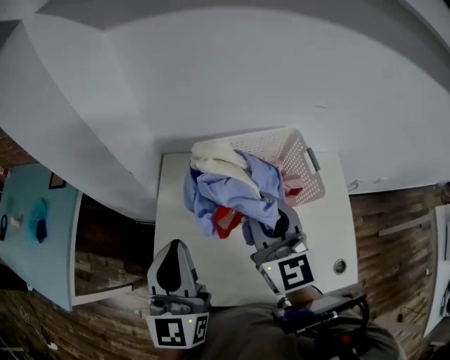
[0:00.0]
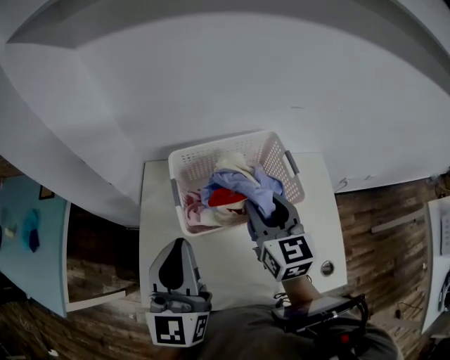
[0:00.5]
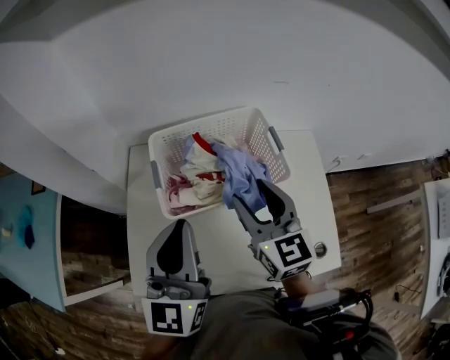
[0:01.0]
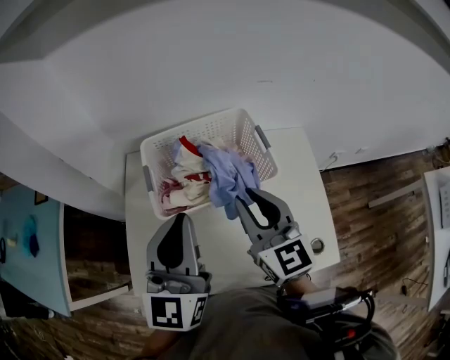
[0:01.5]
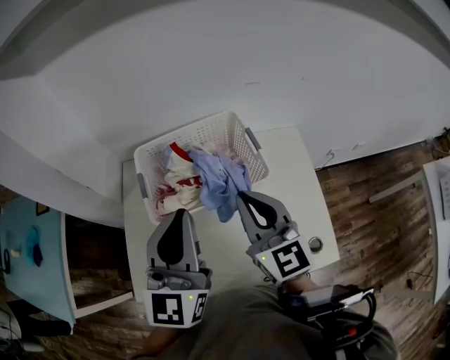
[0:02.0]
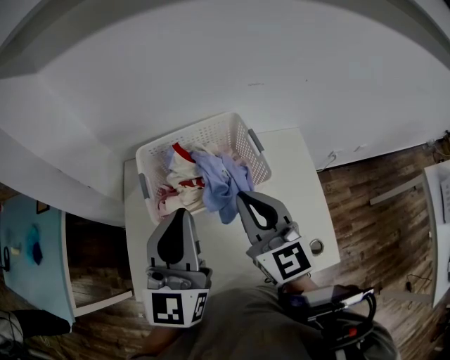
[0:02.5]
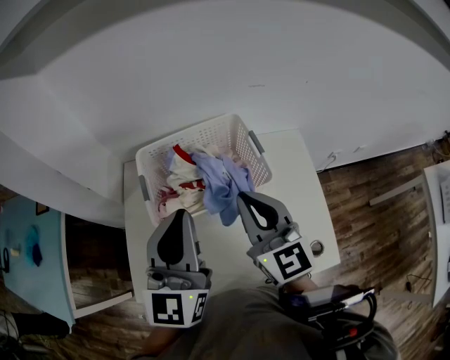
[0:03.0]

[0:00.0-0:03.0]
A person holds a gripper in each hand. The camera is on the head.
0:00.0 to 0:01.5: Both grippers travel together to the right, roughly 15 cm.
0:01.5 to 0:03.0: There are only small adjustments of the grippers.

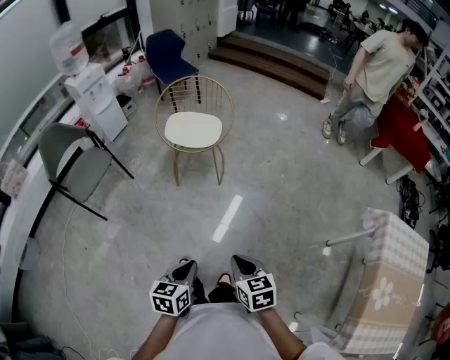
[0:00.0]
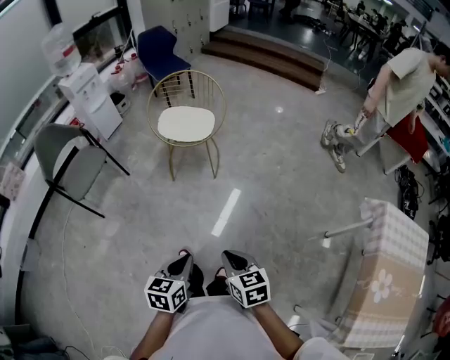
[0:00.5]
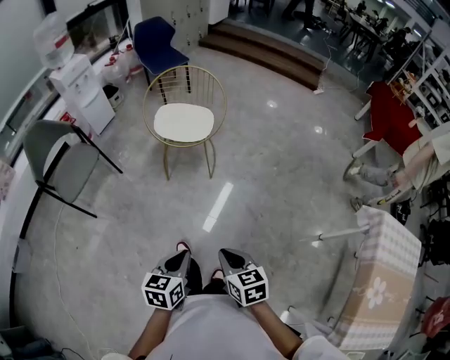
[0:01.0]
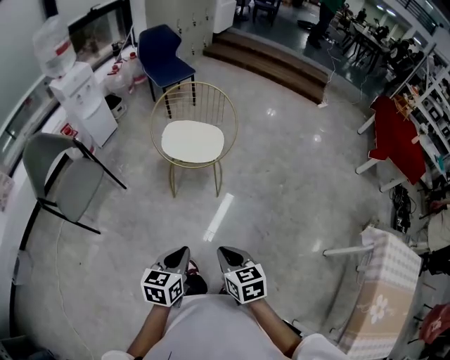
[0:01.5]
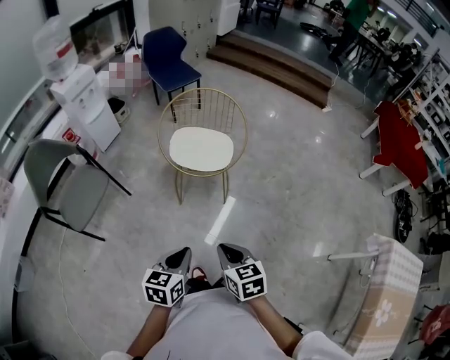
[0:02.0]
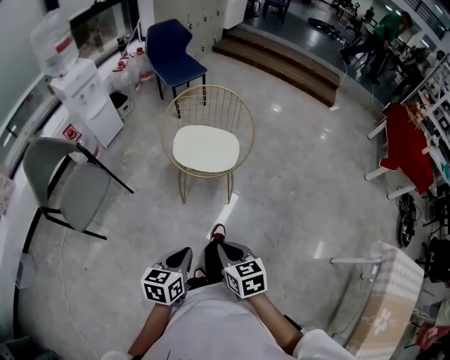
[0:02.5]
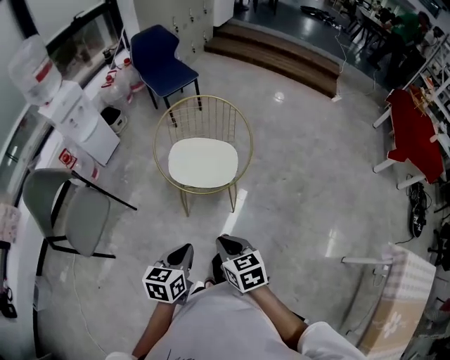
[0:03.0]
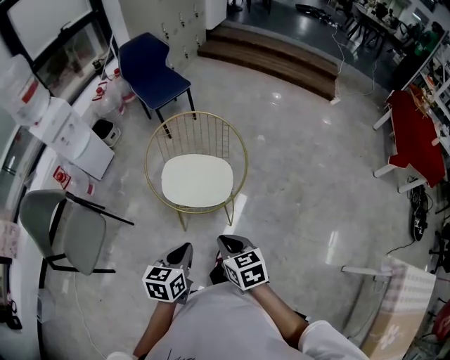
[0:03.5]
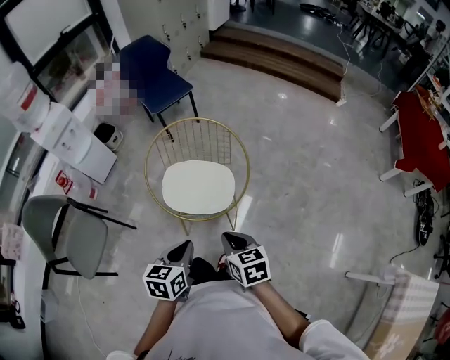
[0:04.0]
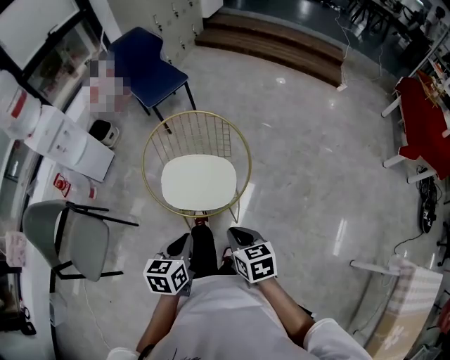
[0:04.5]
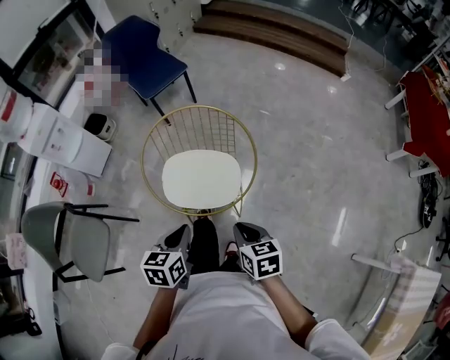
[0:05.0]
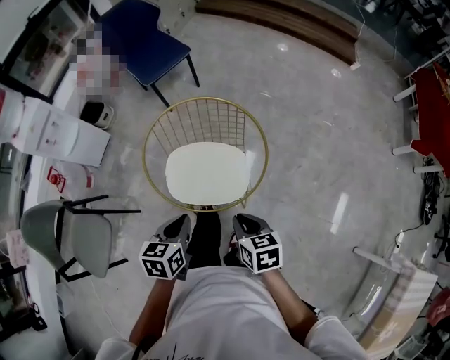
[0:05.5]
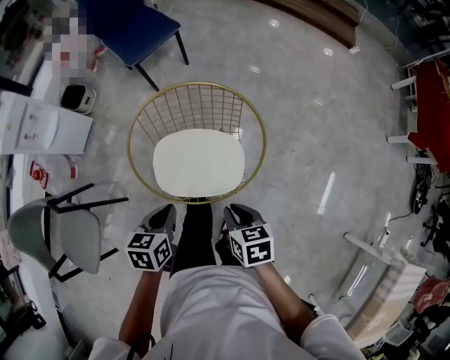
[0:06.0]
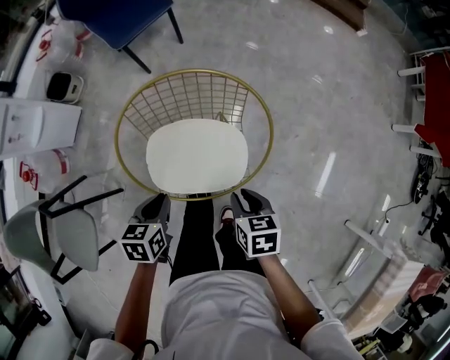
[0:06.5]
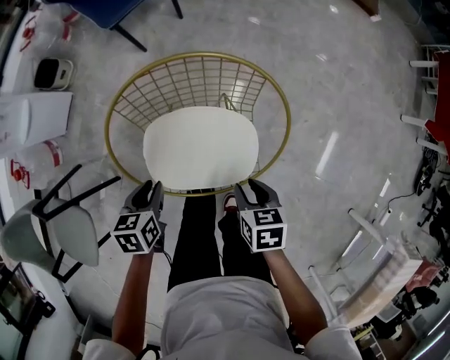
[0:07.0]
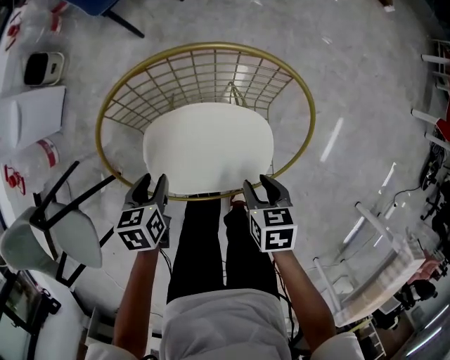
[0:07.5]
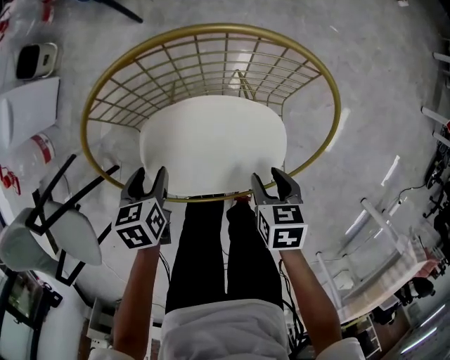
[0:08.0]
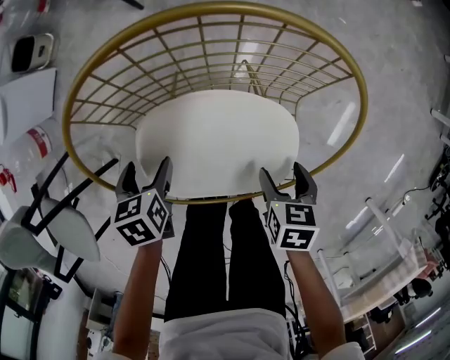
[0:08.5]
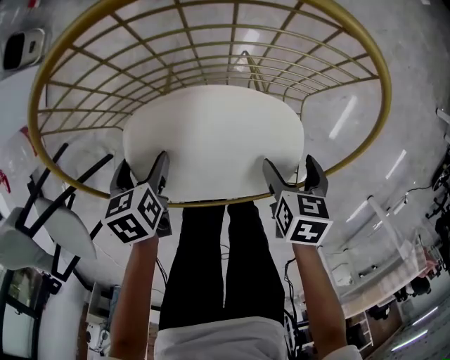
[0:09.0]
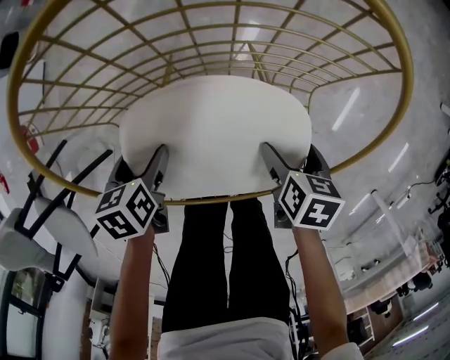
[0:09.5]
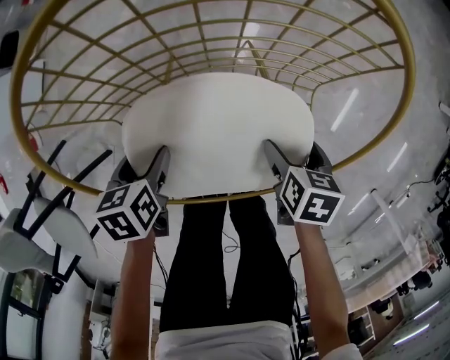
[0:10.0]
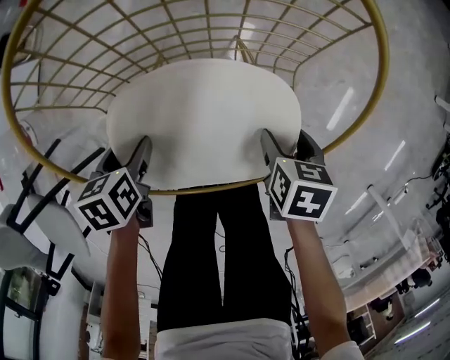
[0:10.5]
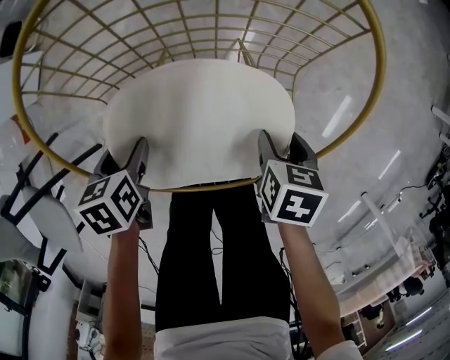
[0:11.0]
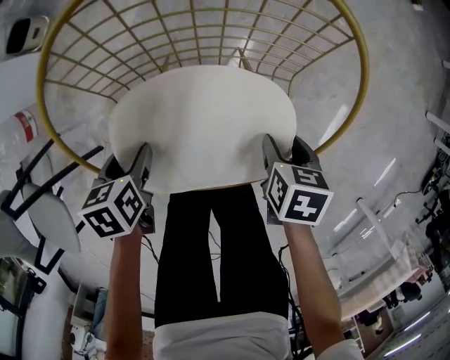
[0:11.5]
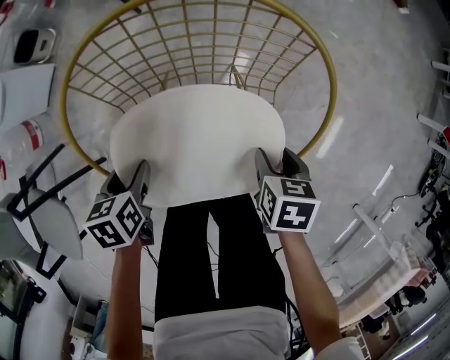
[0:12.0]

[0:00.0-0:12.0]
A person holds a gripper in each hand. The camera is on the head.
0:00.0 to 0:02.0: The two grippers go about 30 cm forward and to the left.
0:02.0 to 0:04.0: The grippers both shift forward by roughly 35 cm.
0:04.0 to 0:06.0: Both grippers travel together forward and downward, about 25 cm.
0:06.0 to 0:08.0: The grippers both shift downward and forward by roughly 30 cm. The left gripper changes its angle by about 20 degrees, and opens up.
0:08.0 to 0:10.0: The grippers both shift downward by some 10 cm. The right gripper opens.
0:10.0 to 0:12.0: The two grippers go some 10 cm upward. The right gripper closes.

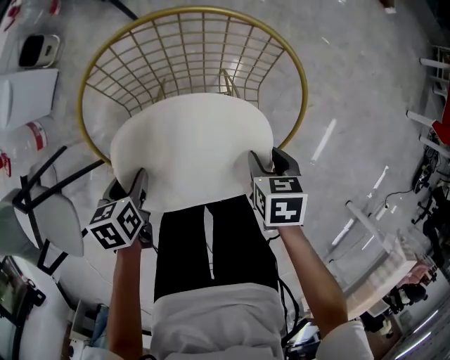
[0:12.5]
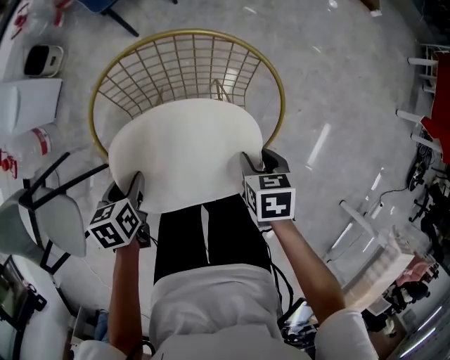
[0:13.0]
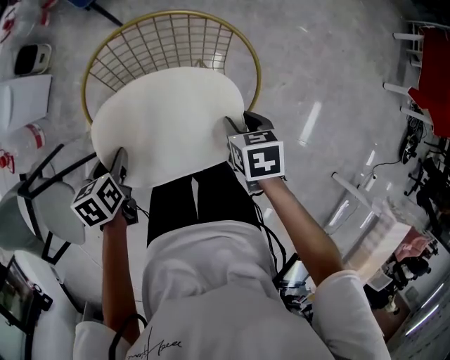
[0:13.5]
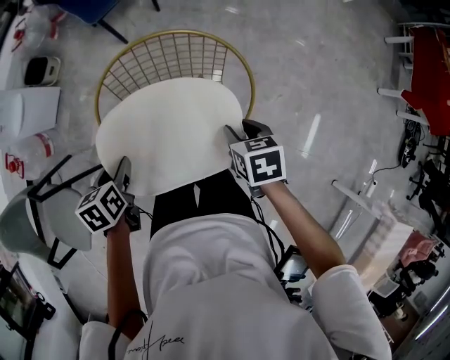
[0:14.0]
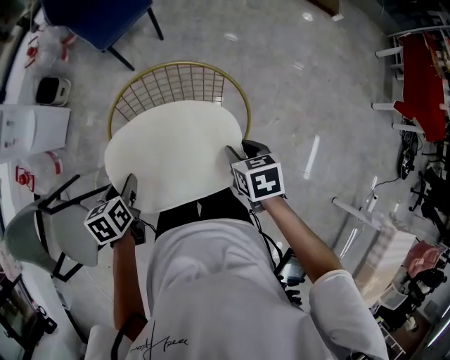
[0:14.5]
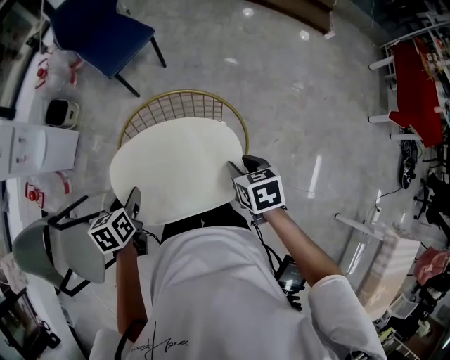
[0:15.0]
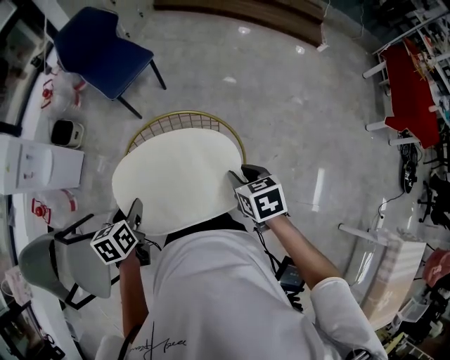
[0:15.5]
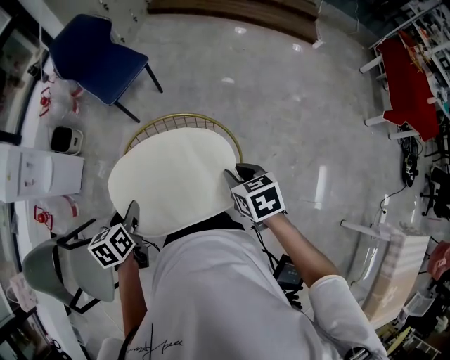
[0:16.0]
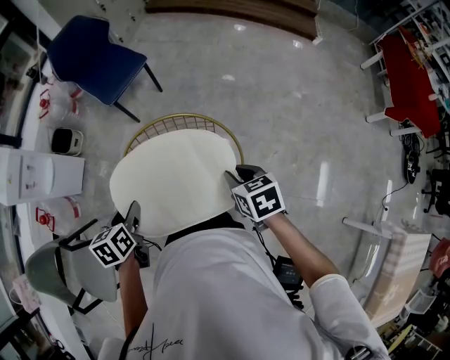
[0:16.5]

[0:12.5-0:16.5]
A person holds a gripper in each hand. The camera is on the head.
0:12.5 to 0:14.5: The two grippers go about 20 cm upward.
0:14.5 to 0:16.5: The two grippers go some 10 cm upward.

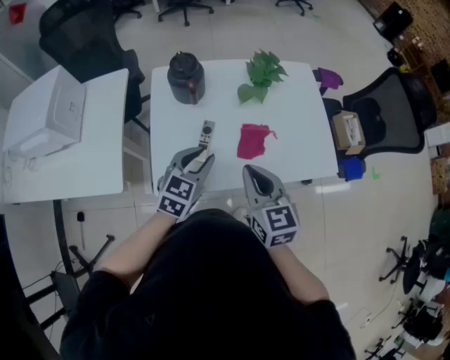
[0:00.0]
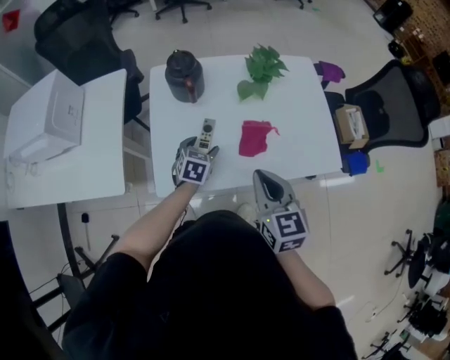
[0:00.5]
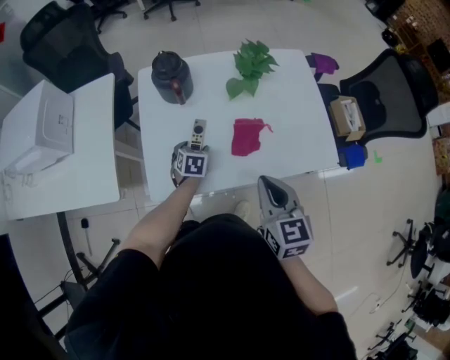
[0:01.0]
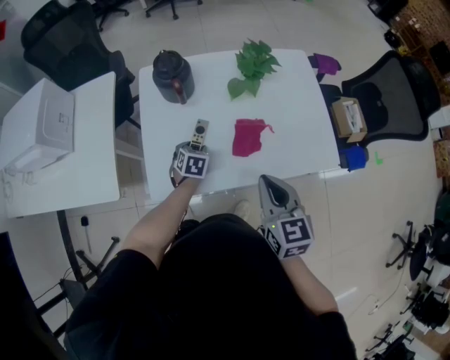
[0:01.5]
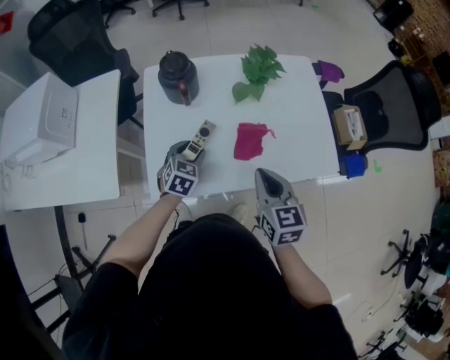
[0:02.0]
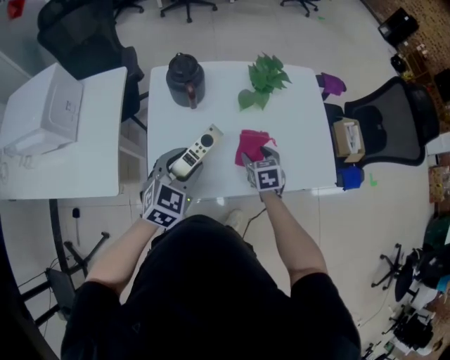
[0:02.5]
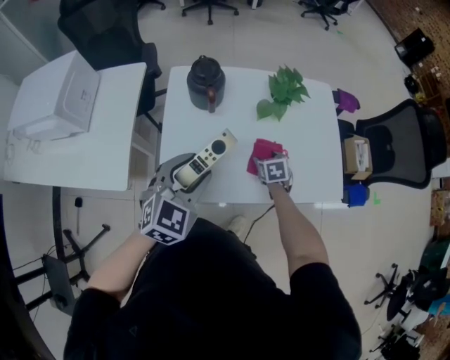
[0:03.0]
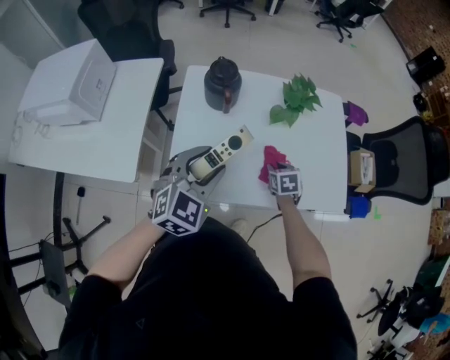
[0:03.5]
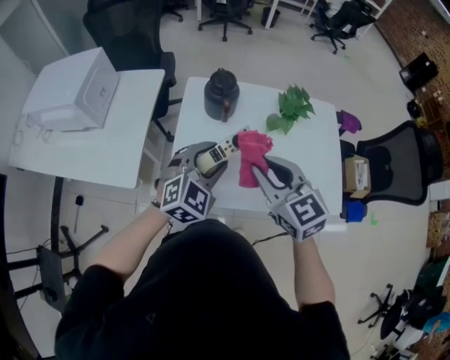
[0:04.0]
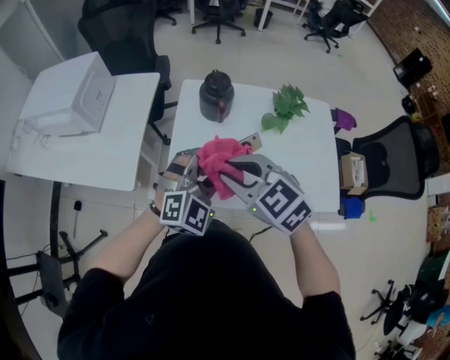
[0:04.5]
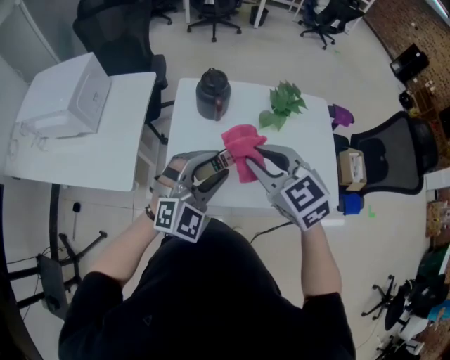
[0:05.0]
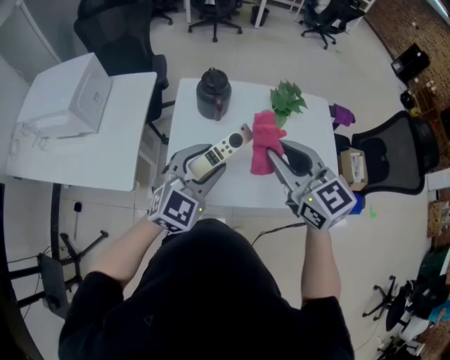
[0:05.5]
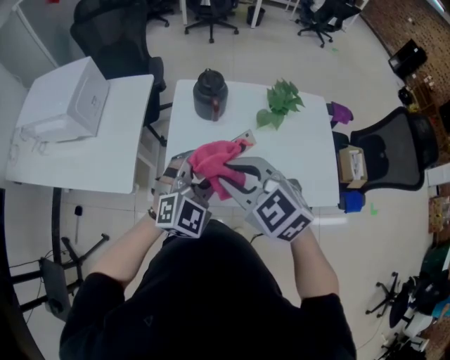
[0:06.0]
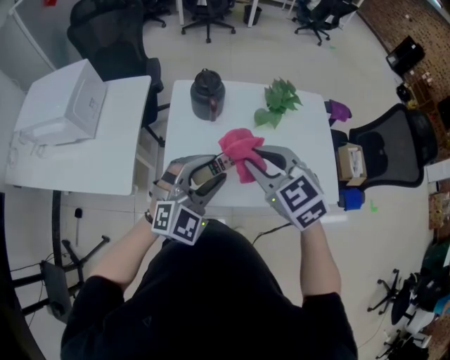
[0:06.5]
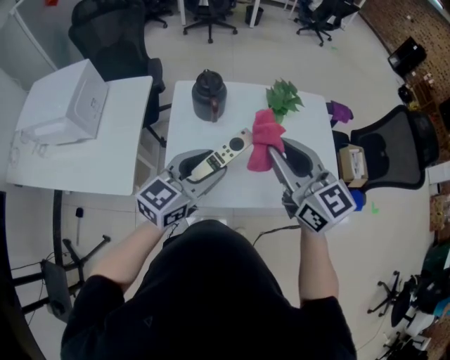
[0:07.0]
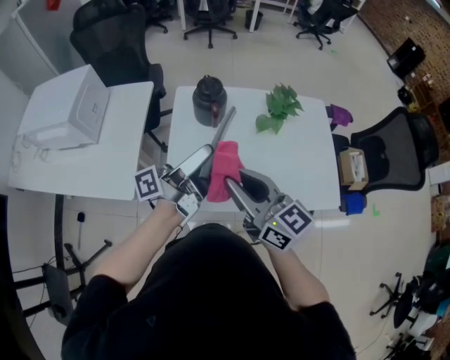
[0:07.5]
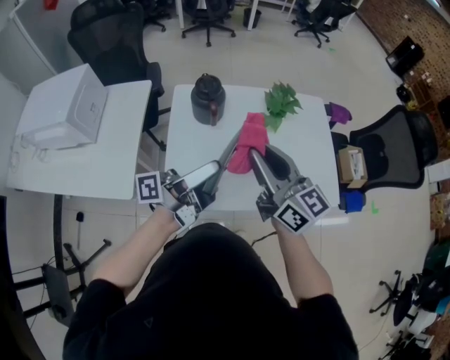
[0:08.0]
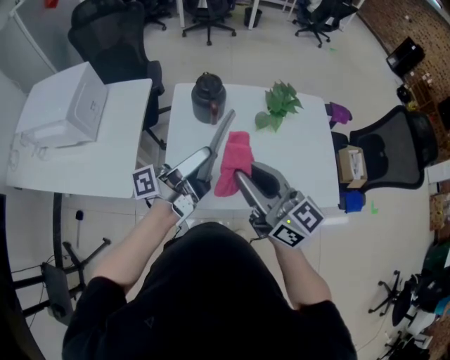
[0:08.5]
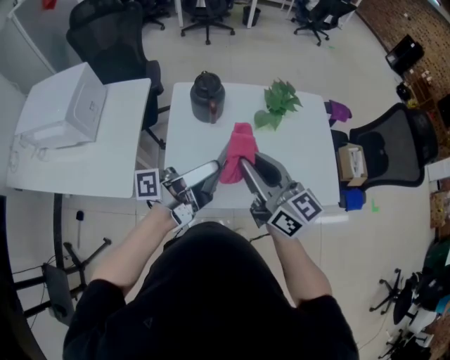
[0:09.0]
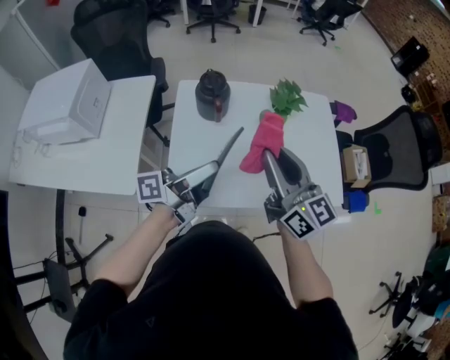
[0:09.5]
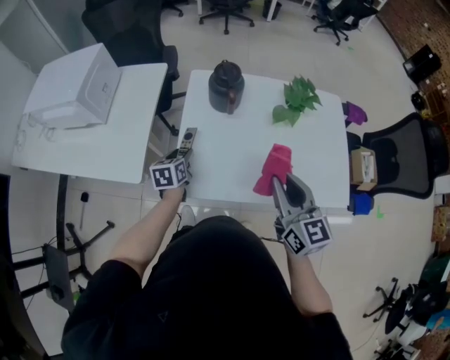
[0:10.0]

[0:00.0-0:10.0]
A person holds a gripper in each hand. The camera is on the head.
0:00.0 to 0:02.0: The right gripper heads to the right, covering about 5 cm. Meanwhile the left gripper shifts some 15 cm downward and forward.
0:02.0 to 0:04.0: The left gripper travels upward by approximately 20 cm, and changes its angle by about 30 degrees; the right gripper heads to the left, covering roughly 10 cm, goes downward and returns, some 20 cm each way, changes its angle by roughly 40 degrees, and opens and closes again.
0:04.0 to 0:06.0: The right gripper goes left and right, about 10 cm each way, reversing 2 times, and changes its angle by about 20 degrees.
0:06.0 to 0:08.0: The left gripper rotates around the line of its fingers by approximately 110 degrees, counterclockwise from behind, while the right gripper swings left and right, some 10 cm each way, with 2 reversals, and tips its fingers upward by approximately 40 degrees.
0:08.0 to 0:10.0: The left gripper heads downward and to the left, covering about 30 cm, and tips its fingers downward by some 70 degrees. The right gripper travels downward by some 10 cm.
